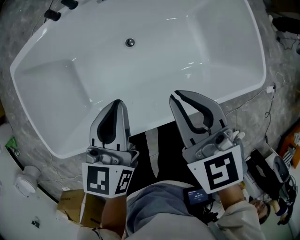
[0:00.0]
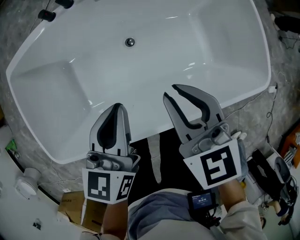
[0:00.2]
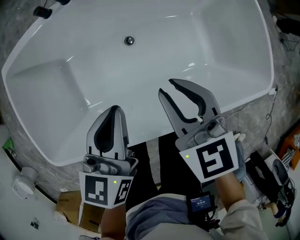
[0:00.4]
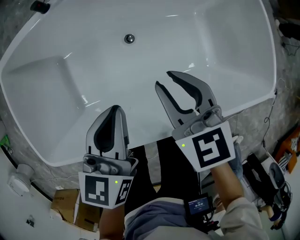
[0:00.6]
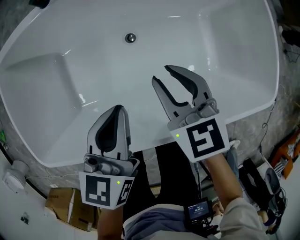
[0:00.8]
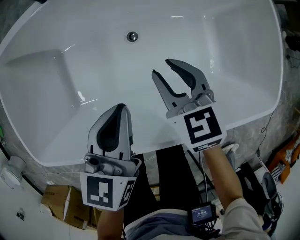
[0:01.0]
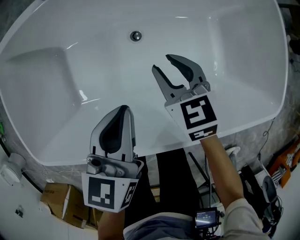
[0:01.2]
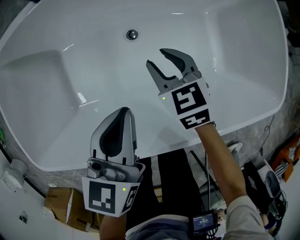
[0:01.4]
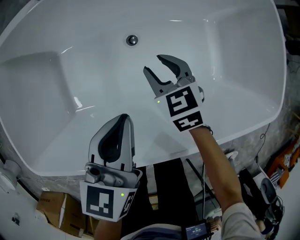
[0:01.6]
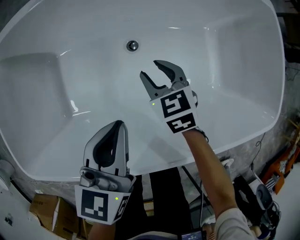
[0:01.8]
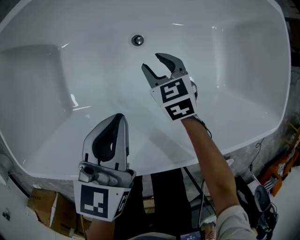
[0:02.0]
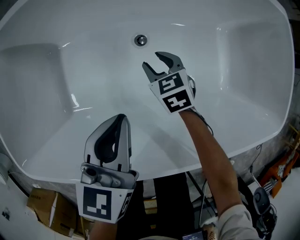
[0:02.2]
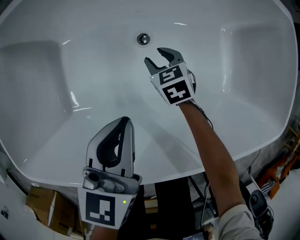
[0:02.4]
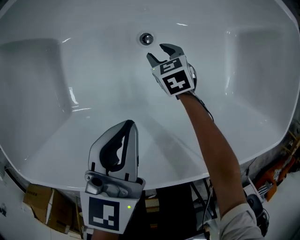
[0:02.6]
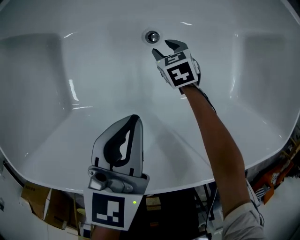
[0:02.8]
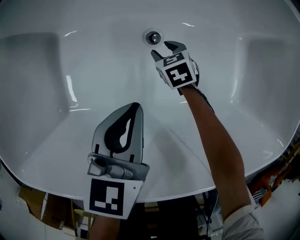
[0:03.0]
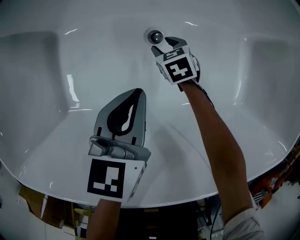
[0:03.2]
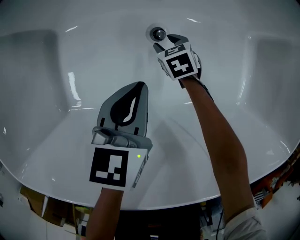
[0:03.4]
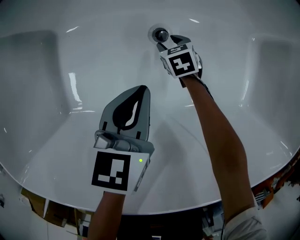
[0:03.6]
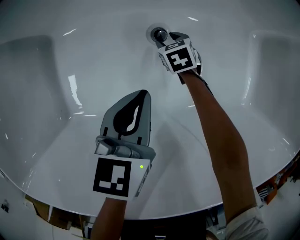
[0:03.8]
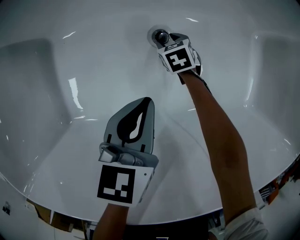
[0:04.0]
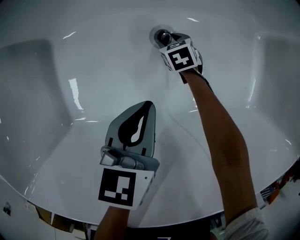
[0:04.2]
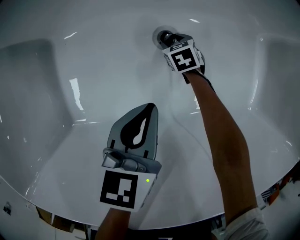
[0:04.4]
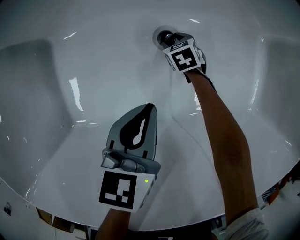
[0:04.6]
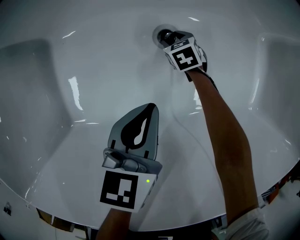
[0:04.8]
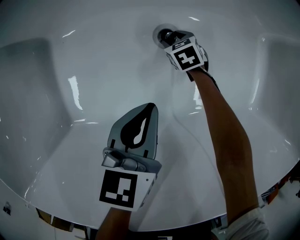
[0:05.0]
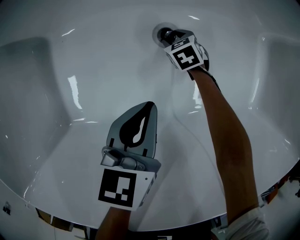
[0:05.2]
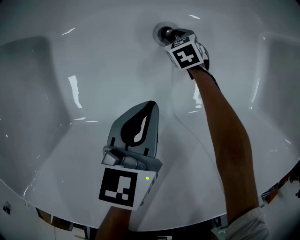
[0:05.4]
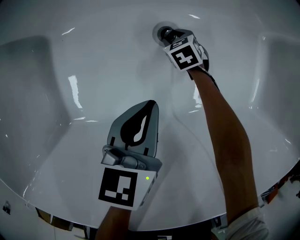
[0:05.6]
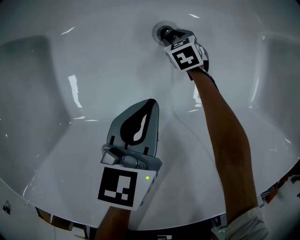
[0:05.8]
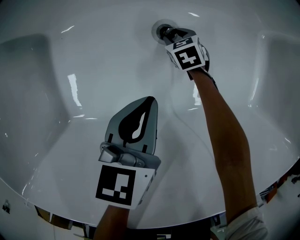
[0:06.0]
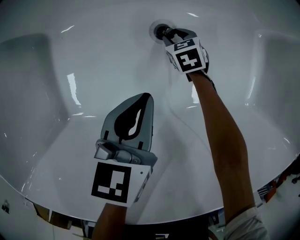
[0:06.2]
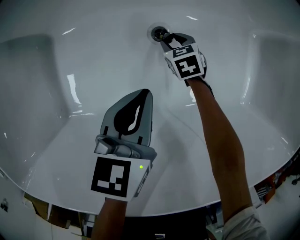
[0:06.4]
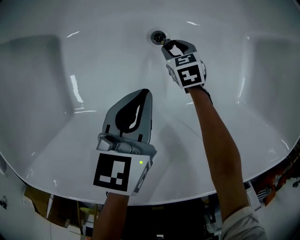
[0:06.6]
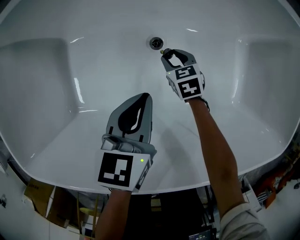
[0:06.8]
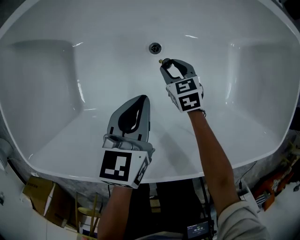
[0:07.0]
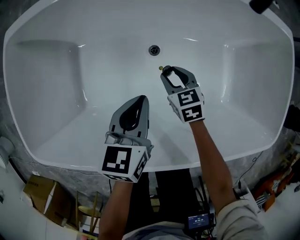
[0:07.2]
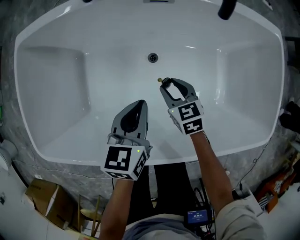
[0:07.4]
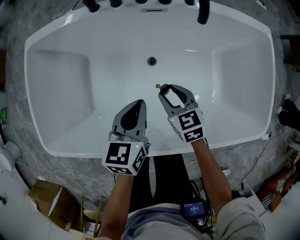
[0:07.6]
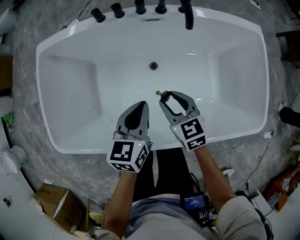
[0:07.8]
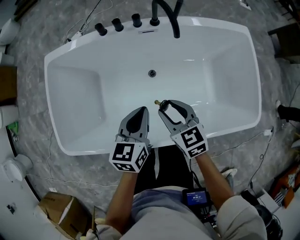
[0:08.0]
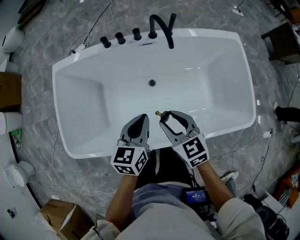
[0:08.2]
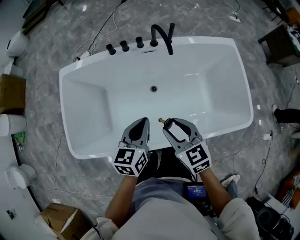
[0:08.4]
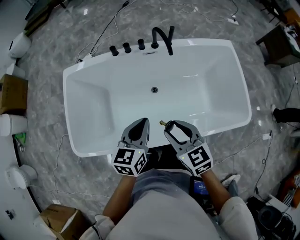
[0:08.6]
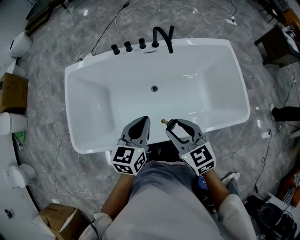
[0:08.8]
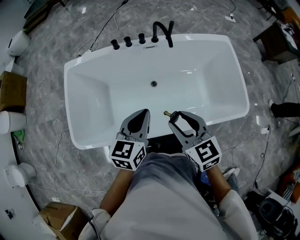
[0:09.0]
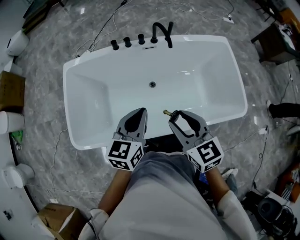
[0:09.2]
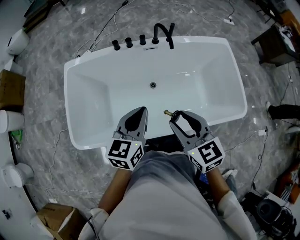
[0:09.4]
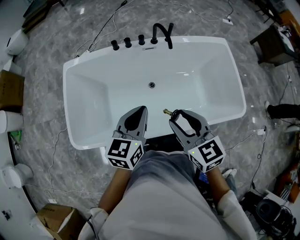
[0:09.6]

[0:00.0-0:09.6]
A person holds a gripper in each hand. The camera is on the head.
0:00.0 to 0:01.6: The left gripper travels downward by about 15 cm; the right gripper travels downward by some 30 cm, and opens up.
0:01.6 to 0:03.2: The right gripper shifts roughly 30 cm downward. The left gripper shifts some 20 cm downward and forward.
0:03.2 to 0:04.8: Both grippers move downward, roughly 10 cm.
0:04.8 to 0:06.4: The right gripper is displaced upward by roughly 5 cm.
0:06.4 to 0:08.0: The right gripper heads upward, covering approximately 60 cm, and turns by roughly 20 degrees. Meanwhile the left gripper heads upward, covering about 40 cm.
0:08.0 to 0:09.6: The two grippers go about 25 cm upward and backward.

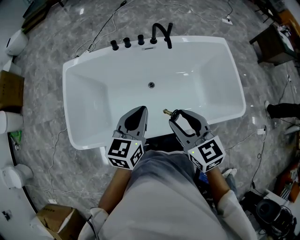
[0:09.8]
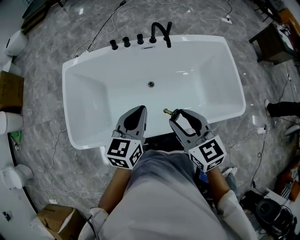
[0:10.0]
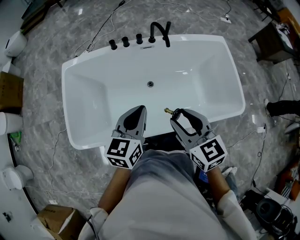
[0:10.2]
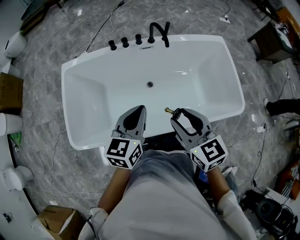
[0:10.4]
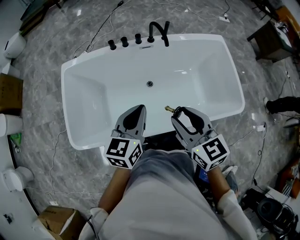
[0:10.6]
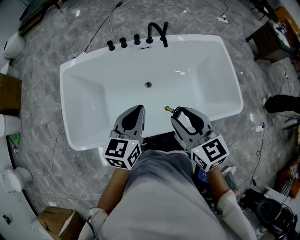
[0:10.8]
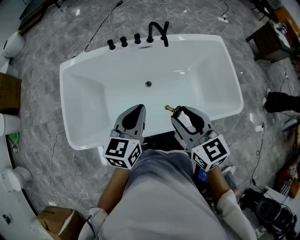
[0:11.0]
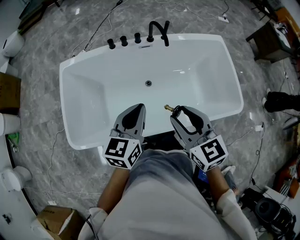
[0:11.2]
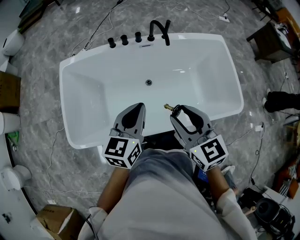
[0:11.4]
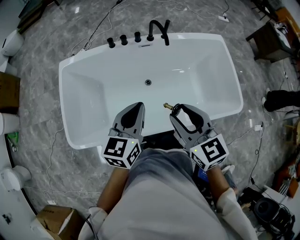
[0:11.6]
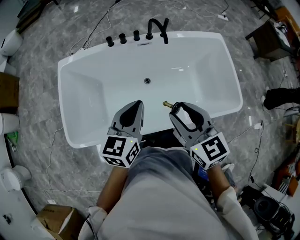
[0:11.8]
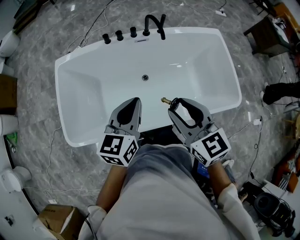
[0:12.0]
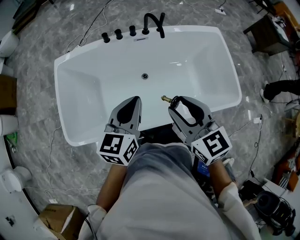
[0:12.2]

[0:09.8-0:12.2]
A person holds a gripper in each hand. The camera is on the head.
0:09.8 to 0:11.0: The grippers make only small movements.
0:11.0 to 0:12.2: Both grippers stay put.

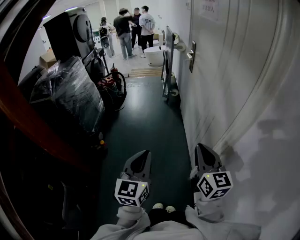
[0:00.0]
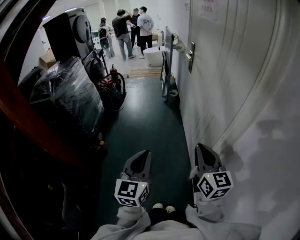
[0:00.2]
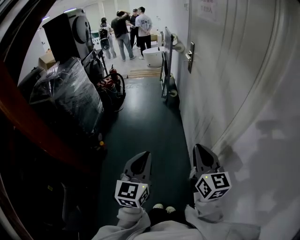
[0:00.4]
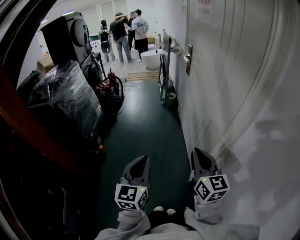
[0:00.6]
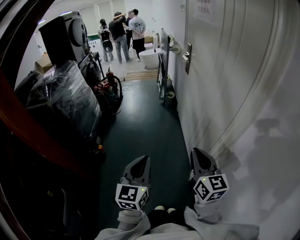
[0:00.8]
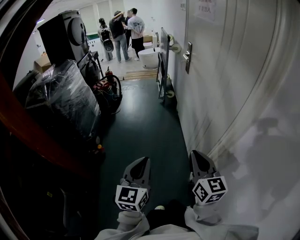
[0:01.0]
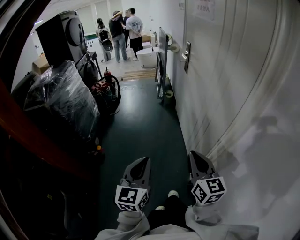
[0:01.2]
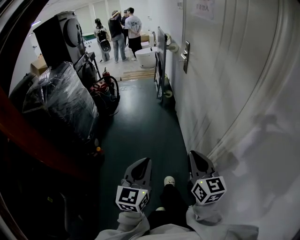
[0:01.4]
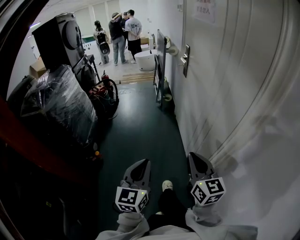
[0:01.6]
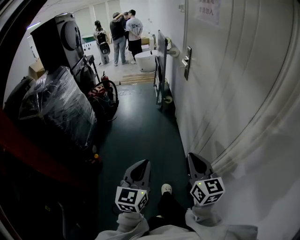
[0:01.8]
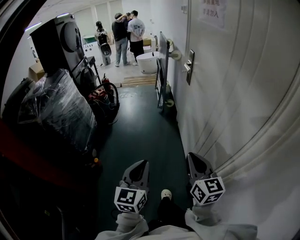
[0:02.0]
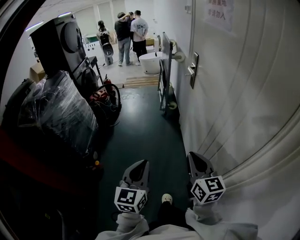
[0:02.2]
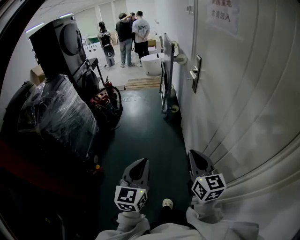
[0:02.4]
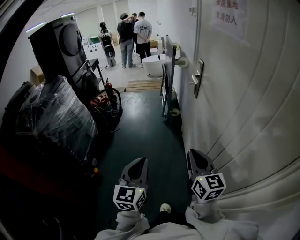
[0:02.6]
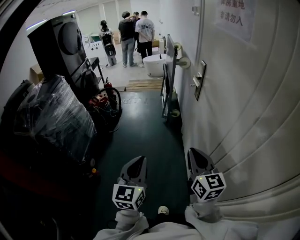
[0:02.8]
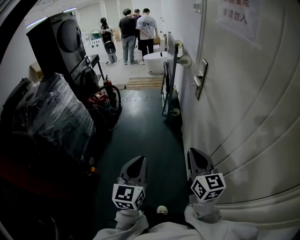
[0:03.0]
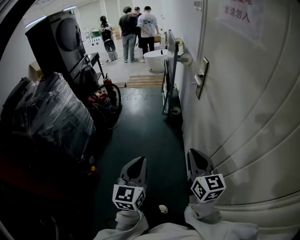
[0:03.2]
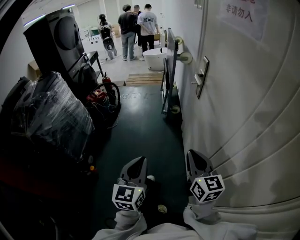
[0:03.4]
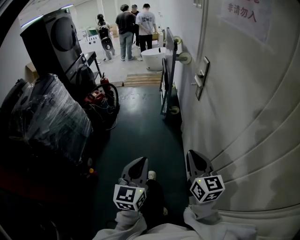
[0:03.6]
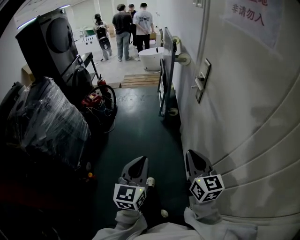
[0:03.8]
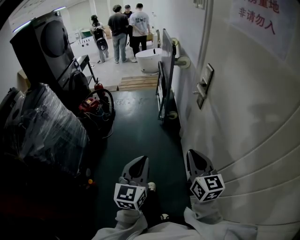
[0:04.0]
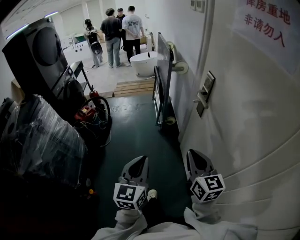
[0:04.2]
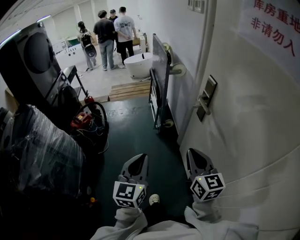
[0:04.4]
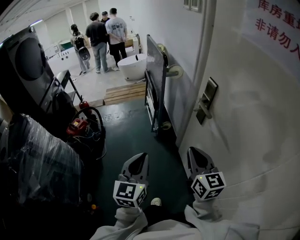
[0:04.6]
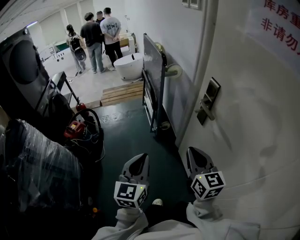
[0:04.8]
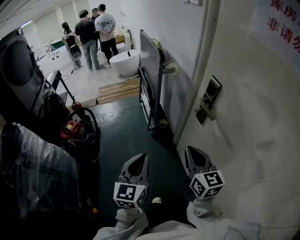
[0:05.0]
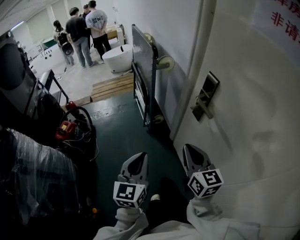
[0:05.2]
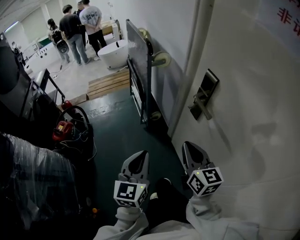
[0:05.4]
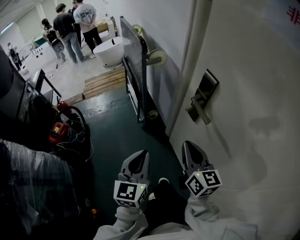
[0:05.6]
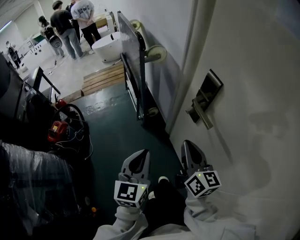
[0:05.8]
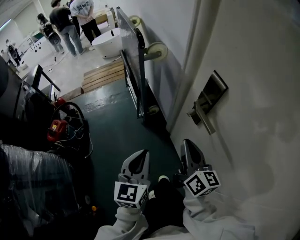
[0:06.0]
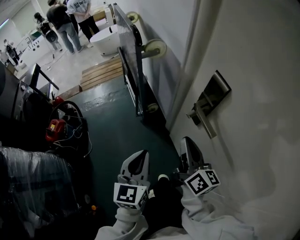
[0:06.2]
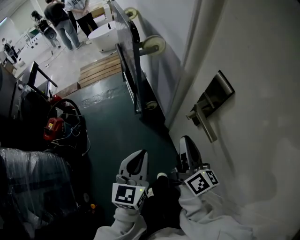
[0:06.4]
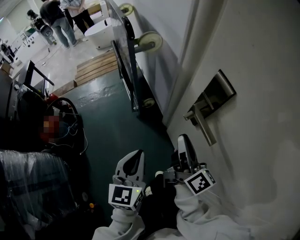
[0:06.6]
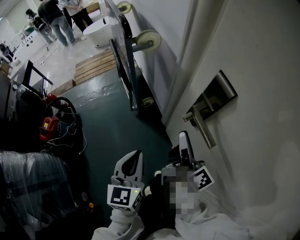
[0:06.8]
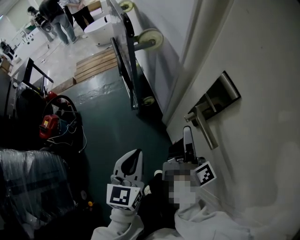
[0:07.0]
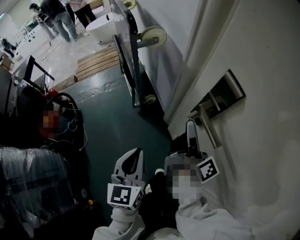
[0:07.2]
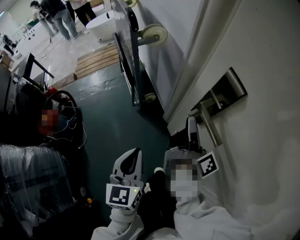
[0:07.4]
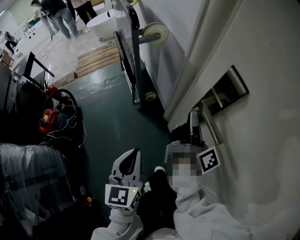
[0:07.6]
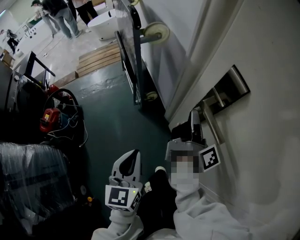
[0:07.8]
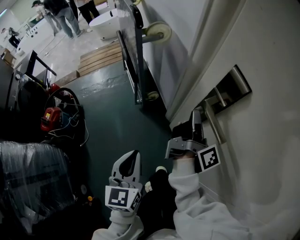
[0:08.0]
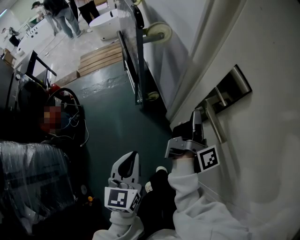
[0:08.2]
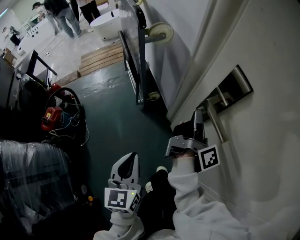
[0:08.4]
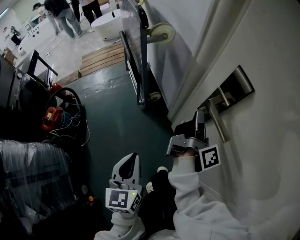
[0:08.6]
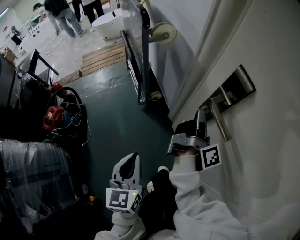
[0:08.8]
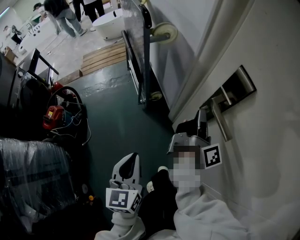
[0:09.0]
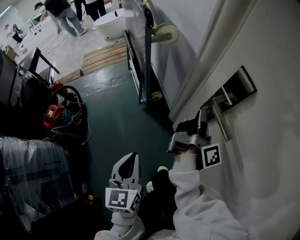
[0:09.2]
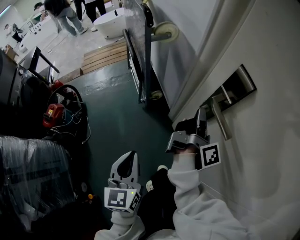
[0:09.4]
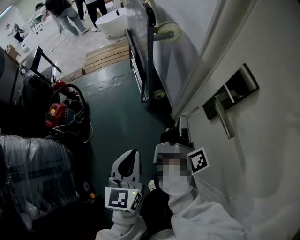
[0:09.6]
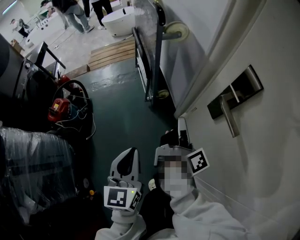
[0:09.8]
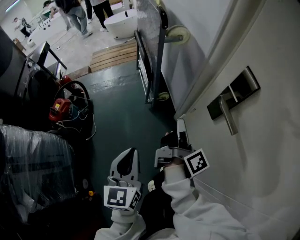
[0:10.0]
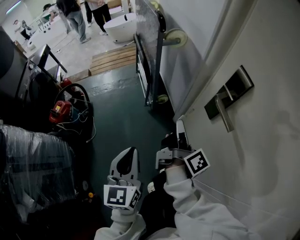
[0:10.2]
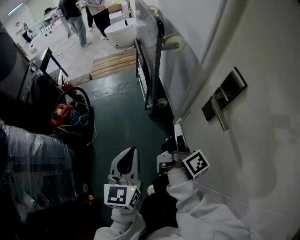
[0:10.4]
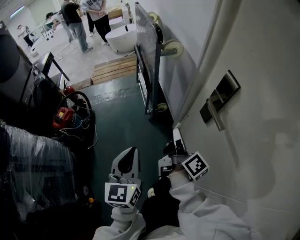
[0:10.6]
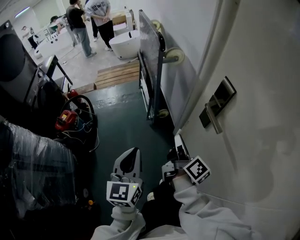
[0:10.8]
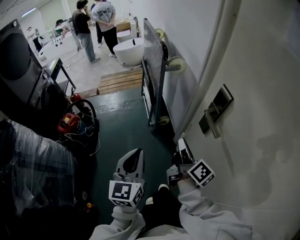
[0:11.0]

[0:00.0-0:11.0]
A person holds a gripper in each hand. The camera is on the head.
0:00.0 to 0:01.6: The left gripper ends up roughly 5 cm from where it was. The right gripper moves about 5 cm.
0:01.6 to 0:03.2: The grippers both shift forward by approximately 35 cm.
0:03.2 to 0:04.8: The two grippers go roughly 30 cm forward.
0:04.8 to 0:06.2: The right gripper goes approximately 20 cm forward and downward, and turns by some 40 degrees; the left gripper travels forward, downward and to the right by roughly 20 cm.
0:06.2 to 0:07.8: The right gripper heads forward, covering roughly 10 cm, and twists about 40 degrees clockwise, seen from behind.
0:07.8 to 0:09.4: The grippers move only a little.
0:09.4 to 0:11.0: The left gripper travels upward by some 10 cm. Meanwhile the right gripper shifts roughly 15 cm backward and to the left, and changes its angle by roughly 40 degrees.

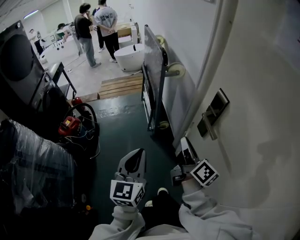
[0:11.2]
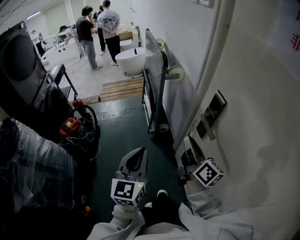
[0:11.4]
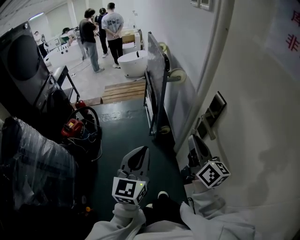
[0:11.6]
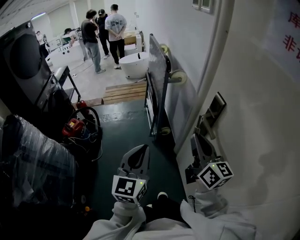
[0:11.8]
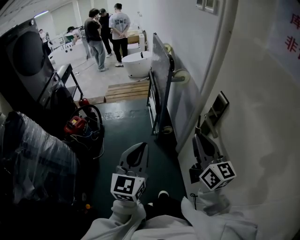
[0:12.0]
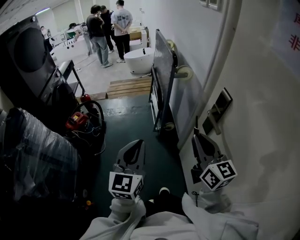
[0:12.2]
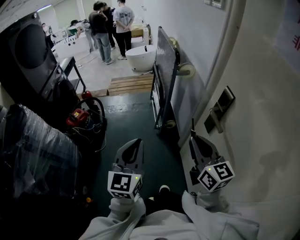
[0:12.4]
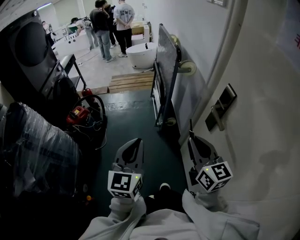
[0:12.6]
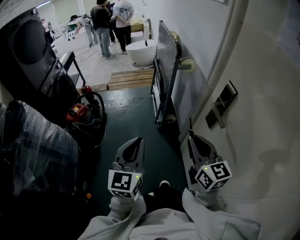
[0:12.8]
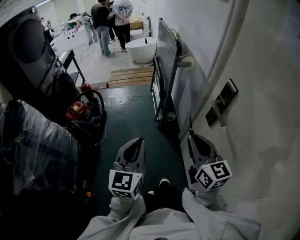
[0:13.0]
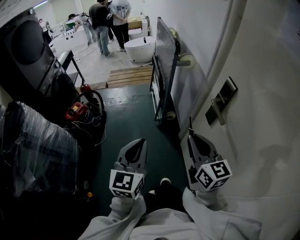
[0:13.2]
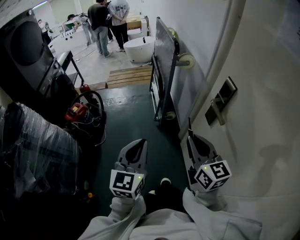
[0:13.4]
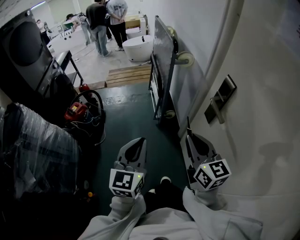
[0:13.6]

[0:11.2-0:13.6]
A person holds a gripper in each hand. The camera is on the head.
0:11.2 to 0:12.4: The right gripper heads backward and upward, covering approximately 10 cm, and rolls counterclockwise, seen from behind, by roughly 50 degrees; the left gripper shifts by some 5 cm.
0:12.4 to 0:13.6: The grippers make only small movements.
